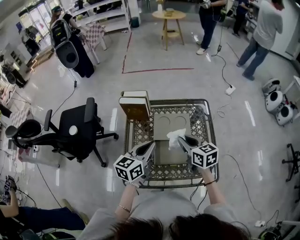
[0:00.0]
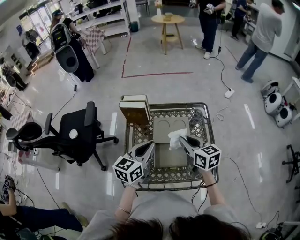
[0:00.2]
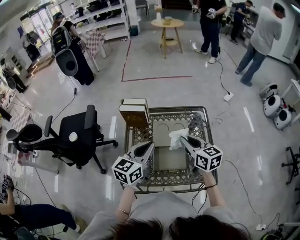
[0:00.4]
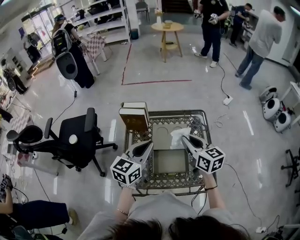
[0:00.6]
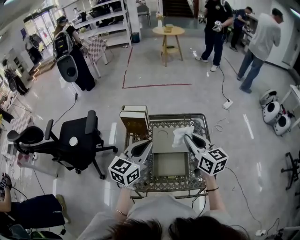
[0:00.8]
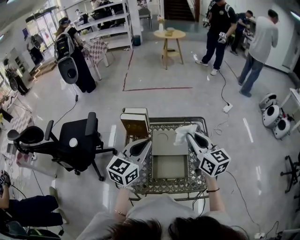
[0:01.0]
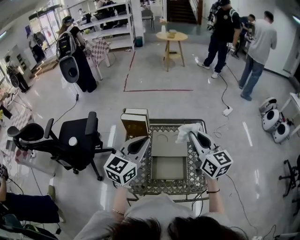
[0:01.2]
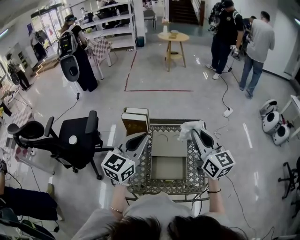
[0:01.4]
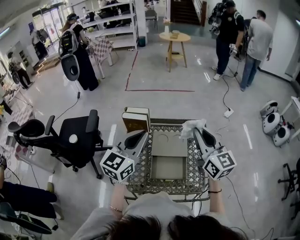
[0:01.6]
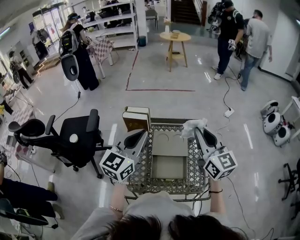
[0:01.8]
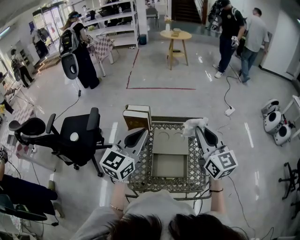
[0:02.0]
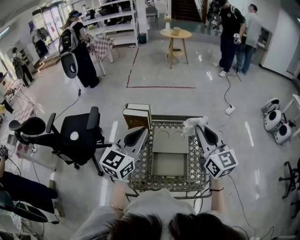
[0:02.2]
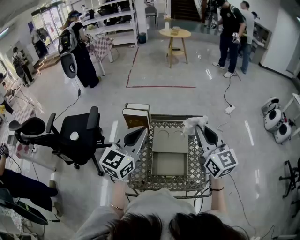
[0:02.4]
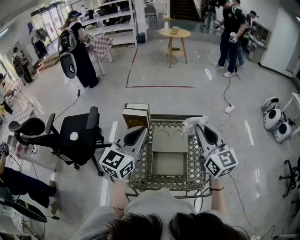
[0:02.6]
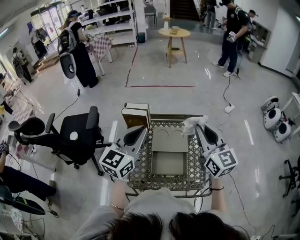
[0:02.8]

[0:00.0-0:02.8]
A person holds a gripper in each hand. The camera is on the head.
0.0 to 1.4 s: Both grippers travel together upward, approximately 15 cm. The right gripper turns by some 30 degrees, while the left gripper turns by approximately 30 degrees.
1.4 to 2.8 s: There are only small adjustments of the grippers.

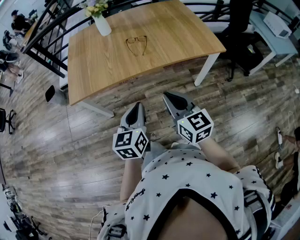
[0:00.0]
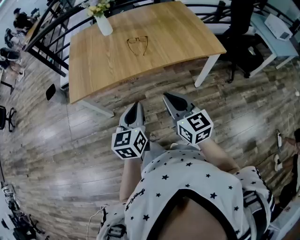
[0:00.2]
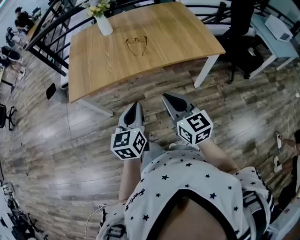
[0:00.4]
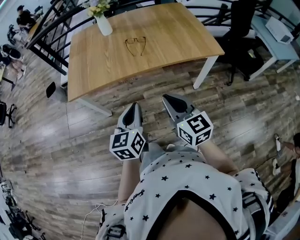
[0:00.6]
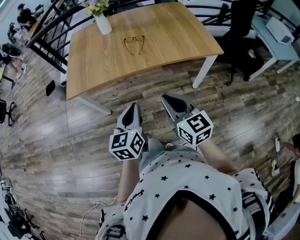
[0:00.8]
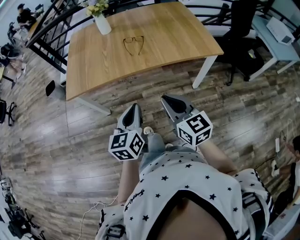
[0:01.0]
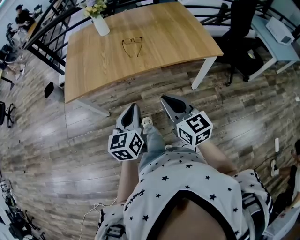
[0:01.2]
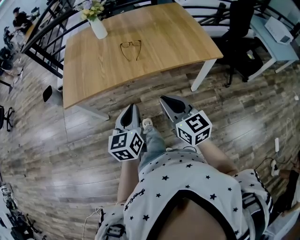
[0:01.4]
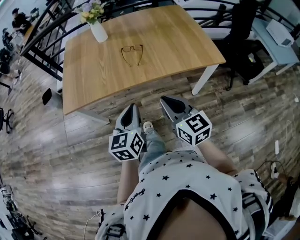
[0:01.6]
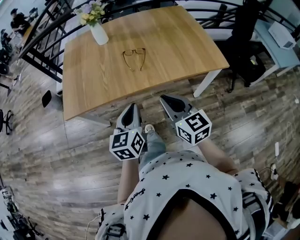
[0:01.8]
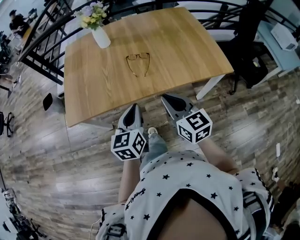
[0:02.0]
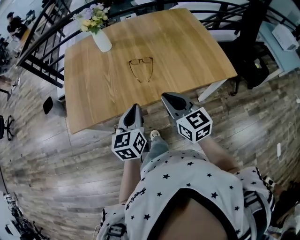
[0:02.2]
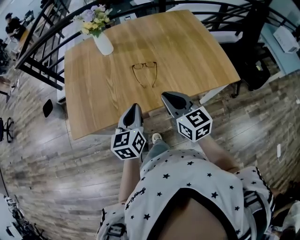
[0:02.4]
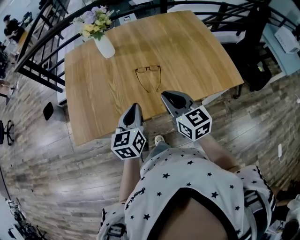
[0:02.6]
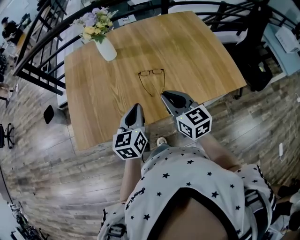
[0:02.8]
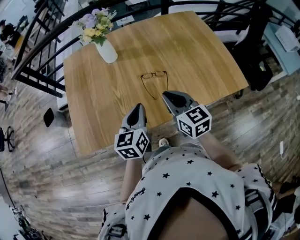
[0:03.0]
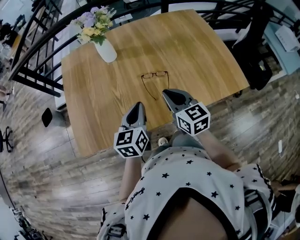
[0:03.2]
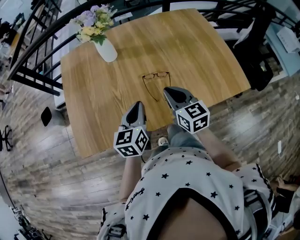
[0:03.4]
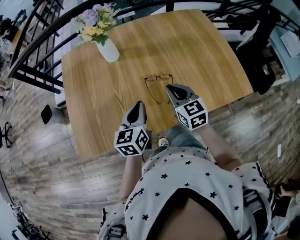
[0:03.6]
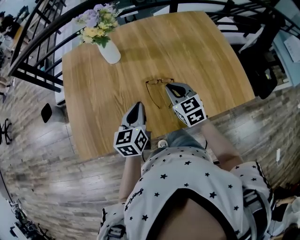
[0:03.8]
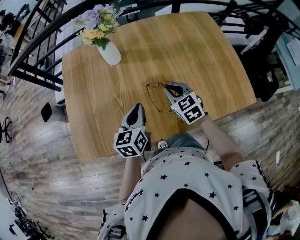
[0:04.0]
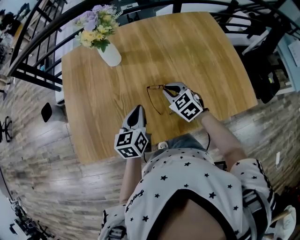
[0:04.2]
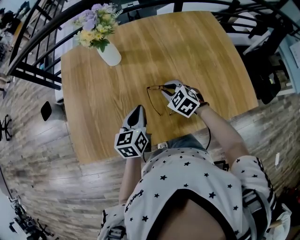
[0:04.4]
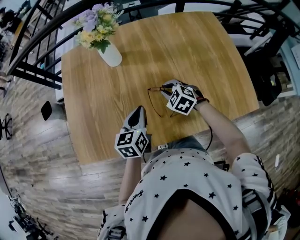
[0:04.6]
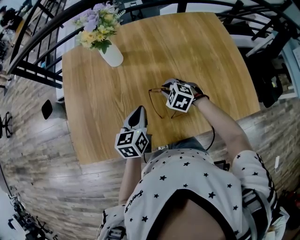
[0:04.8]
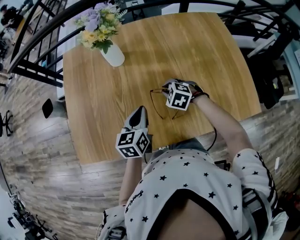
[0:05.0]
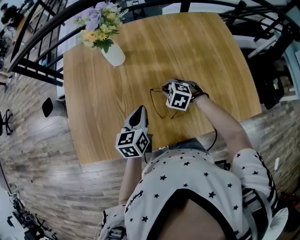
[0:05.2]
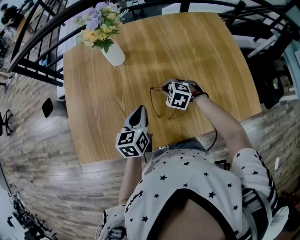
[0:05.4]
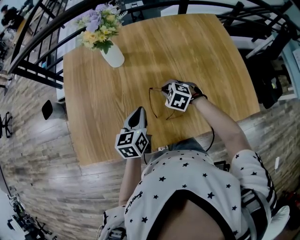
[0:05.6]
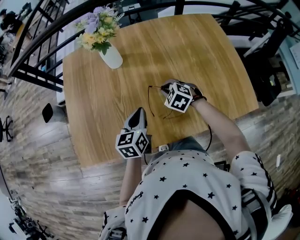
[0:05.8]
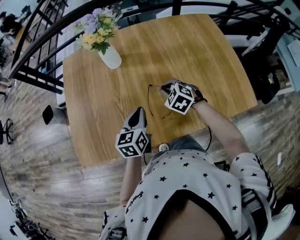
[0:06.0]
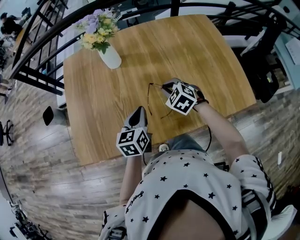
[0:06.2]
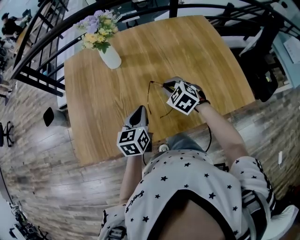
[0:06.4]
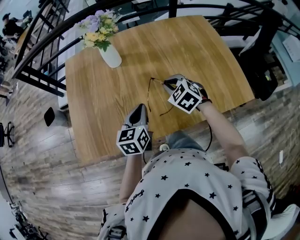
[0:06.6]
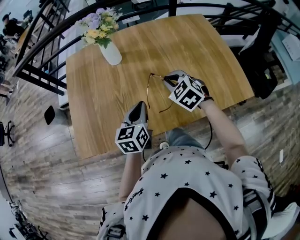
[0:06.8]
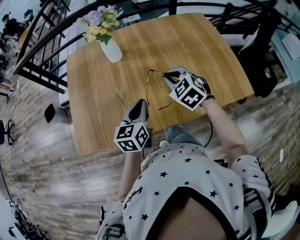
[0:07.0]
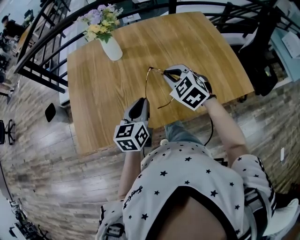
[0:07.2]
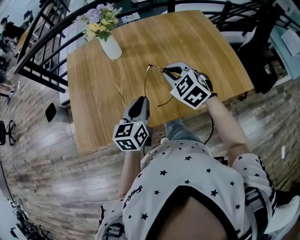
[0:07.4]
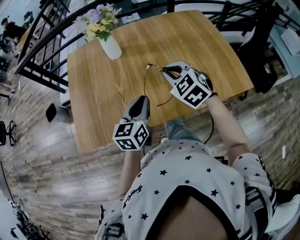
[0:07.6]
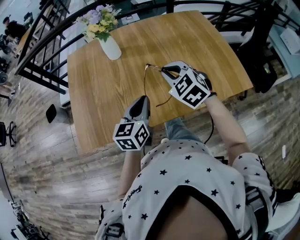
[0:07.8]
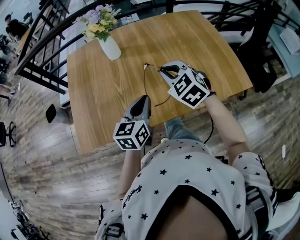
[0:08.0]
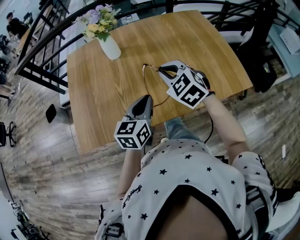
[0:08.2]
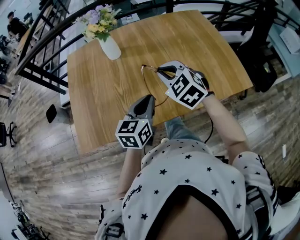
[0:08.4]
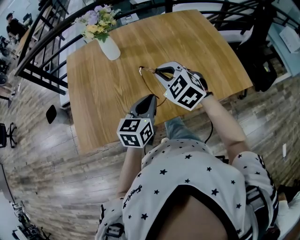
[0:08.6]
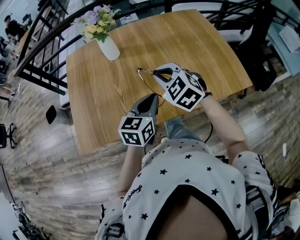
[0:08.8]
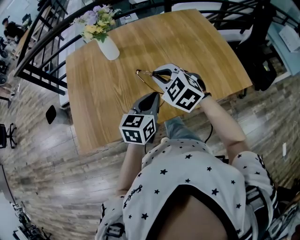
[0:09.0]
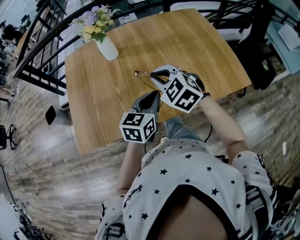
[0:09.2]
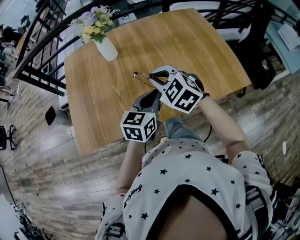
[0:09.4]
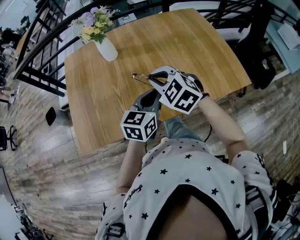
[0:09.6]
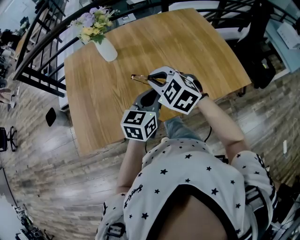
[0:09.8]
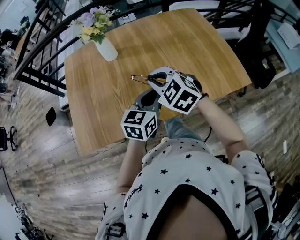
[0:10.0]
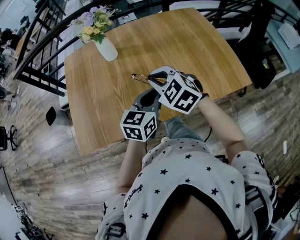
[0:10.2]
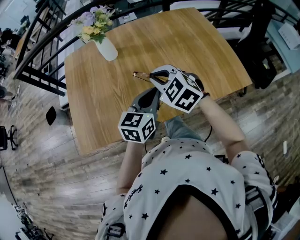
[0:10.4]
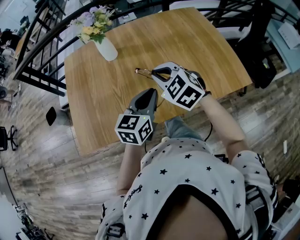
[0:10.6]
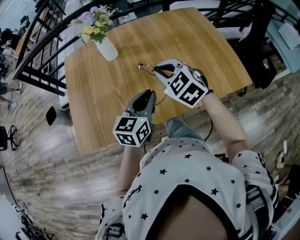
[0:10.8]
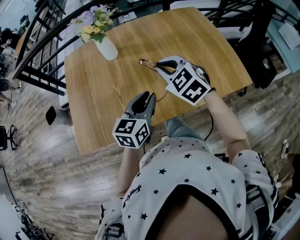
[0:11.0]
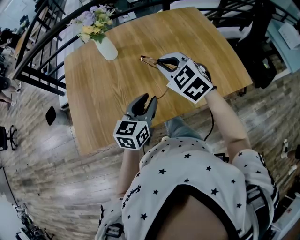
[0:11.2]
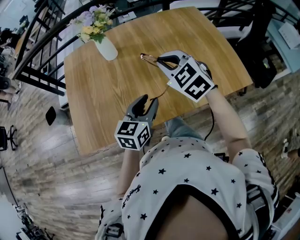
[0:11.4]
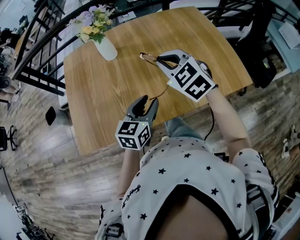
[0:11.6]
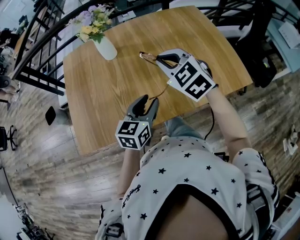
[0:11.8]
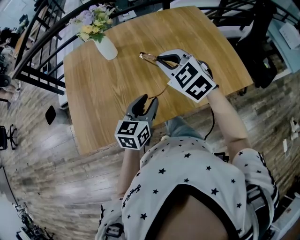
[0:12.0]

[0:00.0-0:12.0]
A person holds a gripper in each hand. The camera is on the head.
0.0 to 1.6 s: Both grippers move forward, some 5 cm.
1.6 to 3.0 s: Both grippers travel together forward, roughly 30 cm.
3.0 to 4.4 s: The right gripper heads forward and downward, covering some 20 cm, and tips its fingers downward by roughly 30 degrees. The left gripper travels forward and downward by approximately 10 cm.
6.0 to 7.6 s: The left gripper heads backward and upward, covering some 10 cm, while the right gripper is displaced upward and backward by about 15 cm.
7.6 to 9.0 s: The left gripper moves to the right, roughly 5 cm.
9.0 to 10.4 s: The grippers stay close to where they were, moving slightly.
10.4 to 12.0 s: The left gripper opens up. The right gripper ends up about 5 cm from where it was.

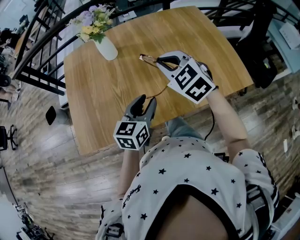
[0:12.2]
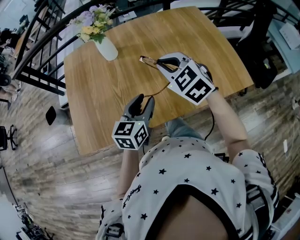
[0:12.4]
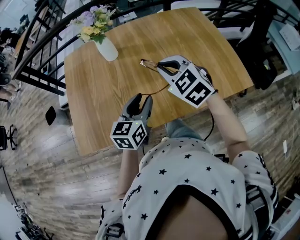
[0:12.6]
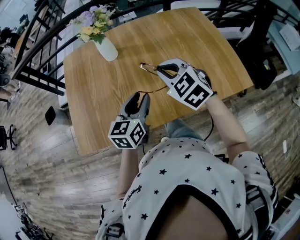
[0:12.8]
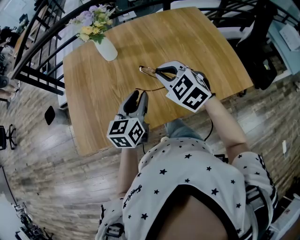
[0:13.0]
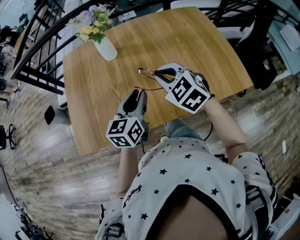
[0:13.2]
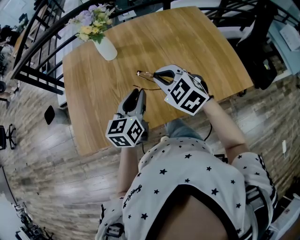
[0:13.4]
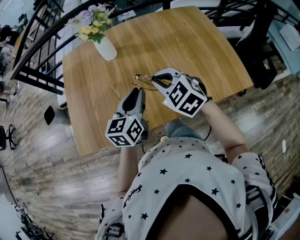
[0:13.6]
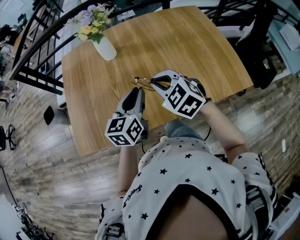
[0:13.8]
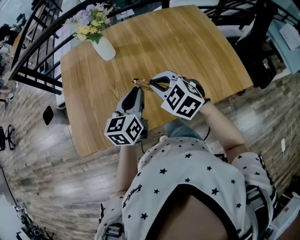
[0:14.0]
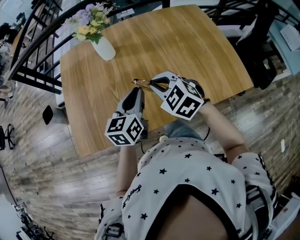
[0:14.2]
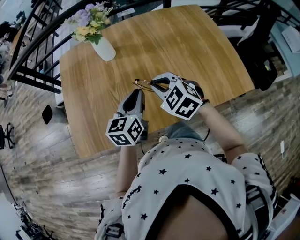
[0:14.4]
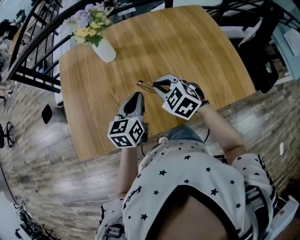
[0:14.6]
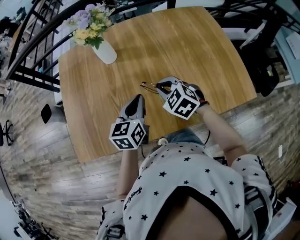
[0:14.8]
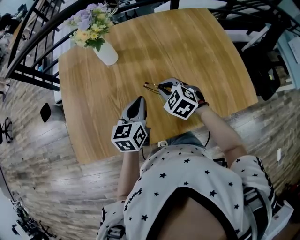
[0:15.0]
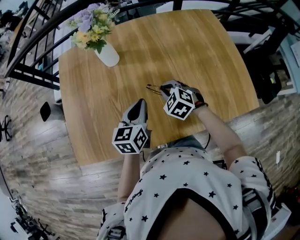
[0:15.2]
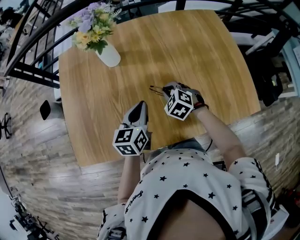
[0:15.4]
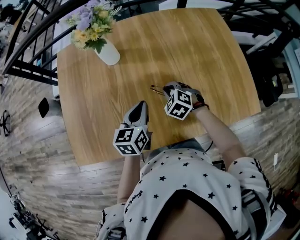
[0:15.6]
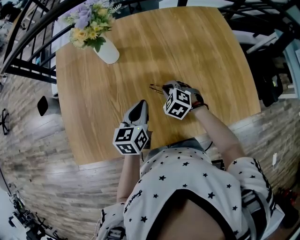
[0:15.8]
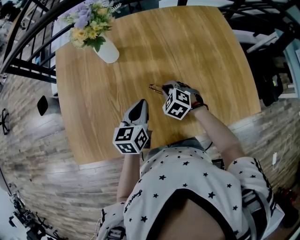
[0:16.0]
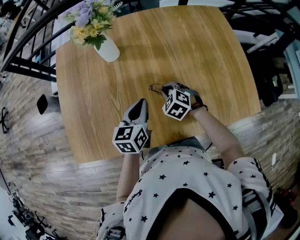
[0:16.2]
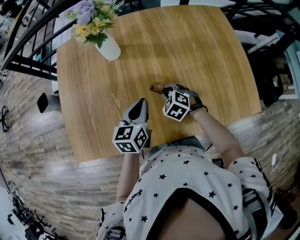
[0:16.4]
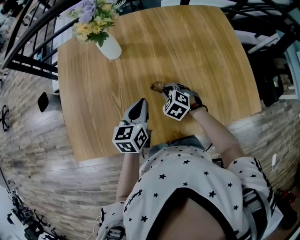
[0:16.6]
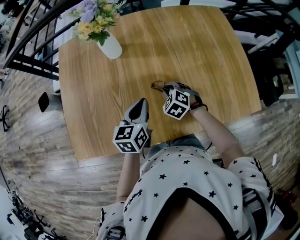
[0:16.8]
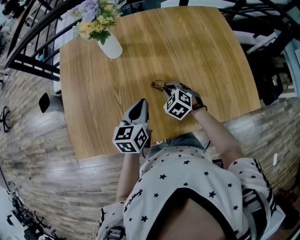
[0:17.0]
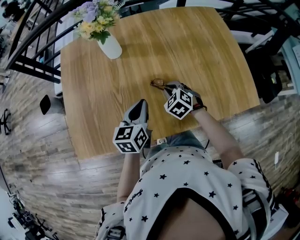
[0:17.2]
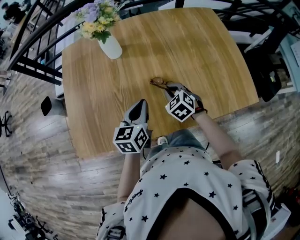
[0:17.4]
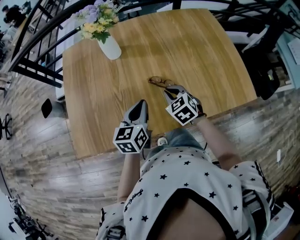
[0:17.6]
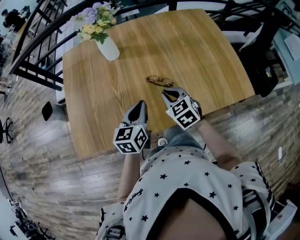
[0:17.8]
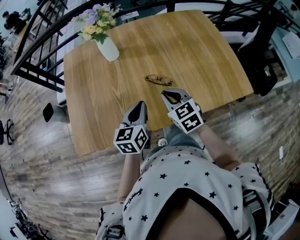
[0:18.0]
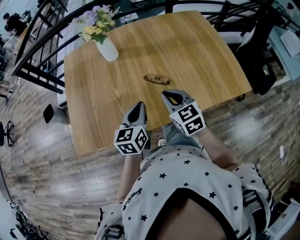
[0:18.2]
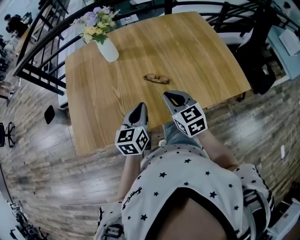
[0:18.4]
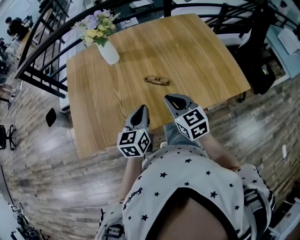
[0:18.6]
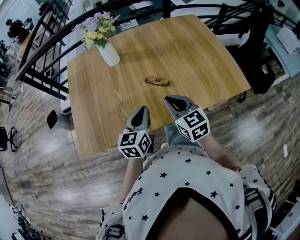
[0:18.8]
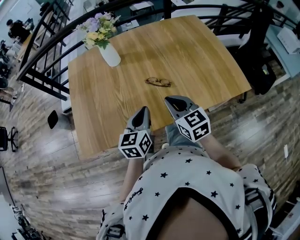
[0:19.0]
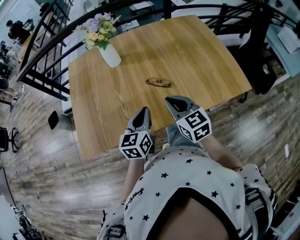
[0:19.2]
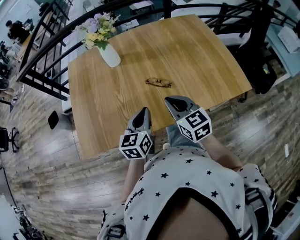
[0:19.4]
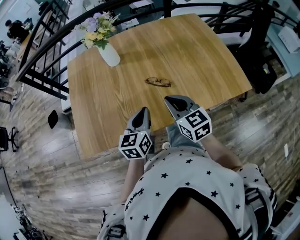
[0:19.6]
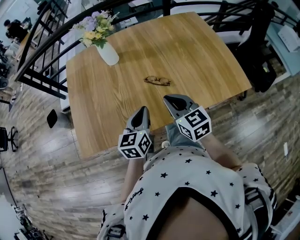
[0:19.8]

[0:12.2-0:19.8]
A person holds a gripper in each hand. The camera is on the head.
12.2 to 13.8 s: The right gripper moves downward, some 5 cm. The left gripper changes place by some 5 cm, and closes up.
13.8 to 15.2 s: The right gripper moves downward and forward, approximately 20 cm, while the left gripper is displaced forward and downward by roughly 10 cm.
15.2 to 16.8 s: The right gripper shifts about 5 cm downward.
16.8 to 18.2 s: The left gripper moves backward, about 10 cm. Meanwhile the right gripper travels upward and backward by roughly 20 cm, and tips its fingers upward by some 30 degrees.
18.2 to 19.8 s: The grippers stay close to where they were, moving slightly.

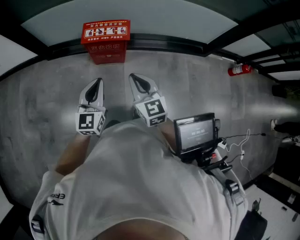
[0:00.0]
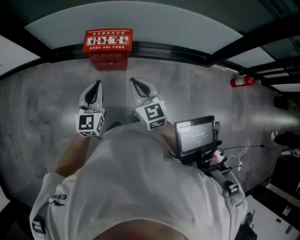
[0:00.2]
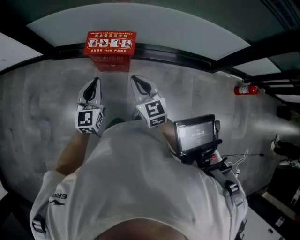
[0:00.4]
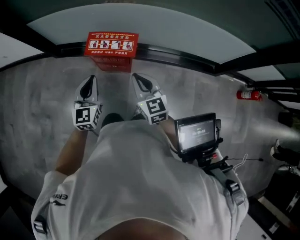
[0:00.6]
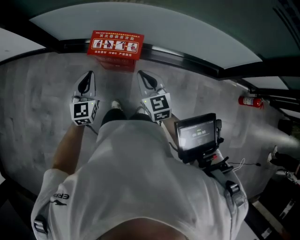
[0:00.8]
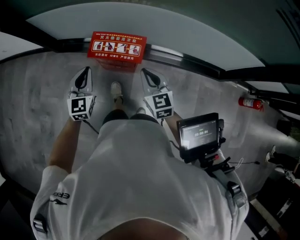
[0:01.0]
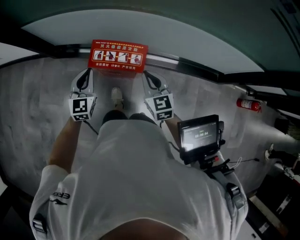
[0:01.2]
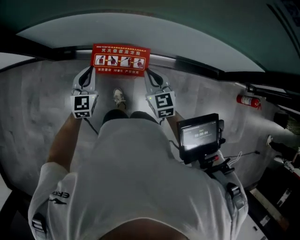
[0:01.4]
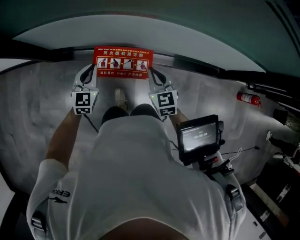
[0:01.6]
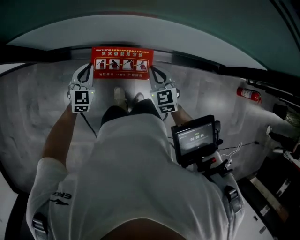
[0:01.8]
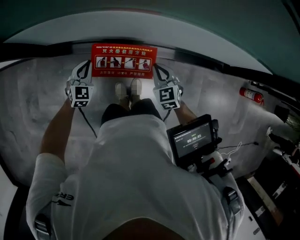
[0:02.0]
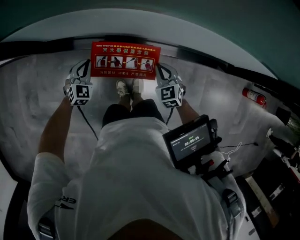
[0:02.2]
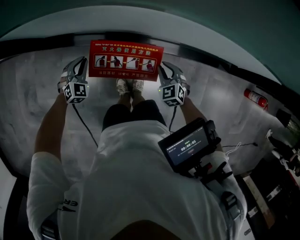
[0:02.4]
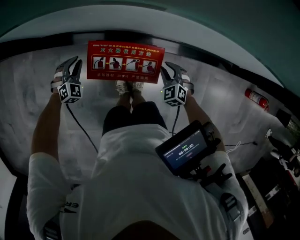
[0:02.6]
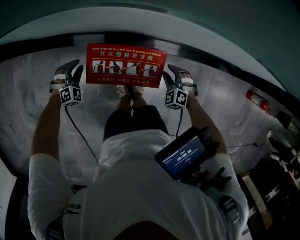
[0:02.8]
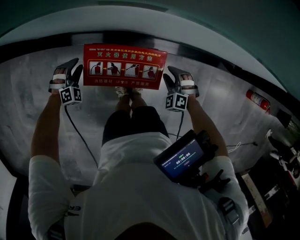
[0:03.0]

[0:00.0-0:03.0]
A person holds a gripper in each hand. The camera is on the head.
0.0 to 1.6 s: Both grippers move forward, roughly 40 cm. The left gripper rotates roughly 20 degrees.
1.6 to 3.0 s: Both grippers move downward, about 30 cm. The left gripper rolls clockwise, seen from behind, by roughly 50 degrees, and opens its fingers; the right gripper rolls counterclockwise, seen from behind, by approximately 50 degrees, and opens up.
